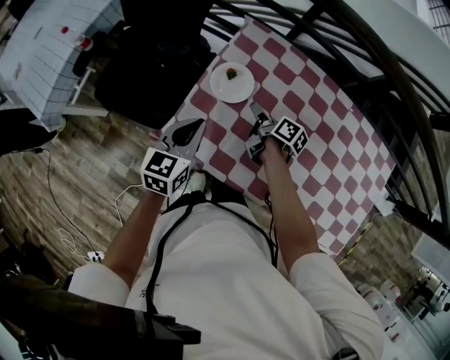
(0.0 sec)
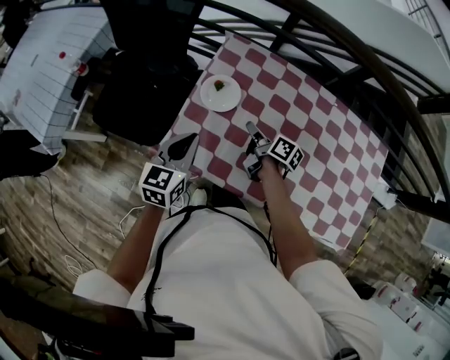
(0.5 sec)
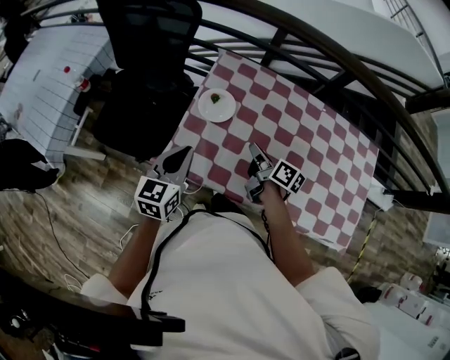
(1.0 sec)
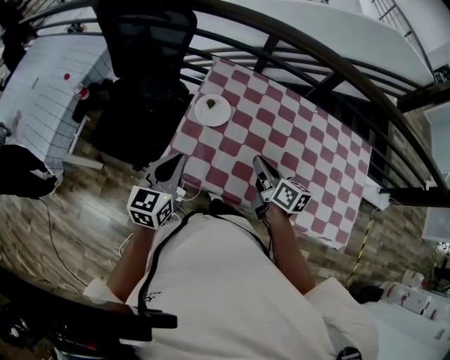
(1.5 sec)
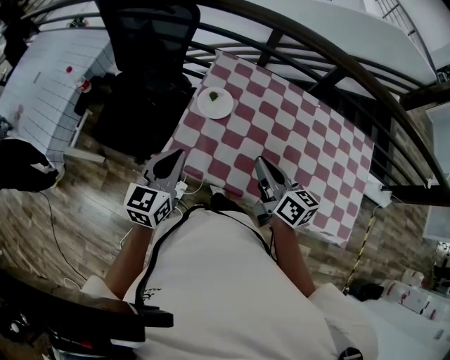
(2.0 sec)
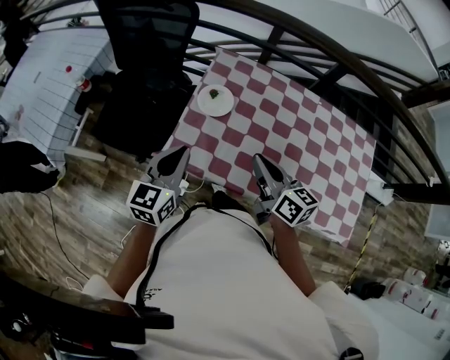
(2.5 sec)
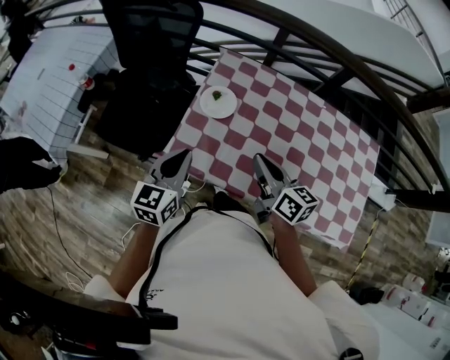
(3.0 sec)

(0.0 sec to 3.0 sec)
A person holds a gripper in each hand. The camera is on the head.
0.0 sec - 1.5 sec: The left gripper ends up approximately 15 cm from where it was.

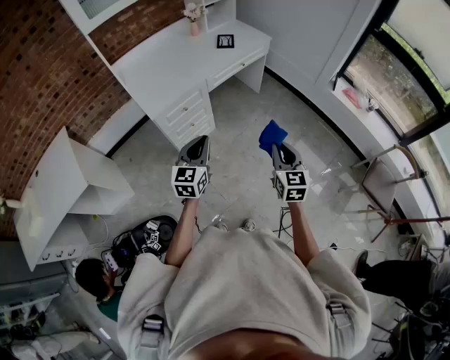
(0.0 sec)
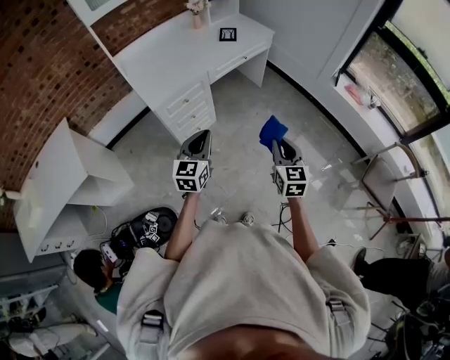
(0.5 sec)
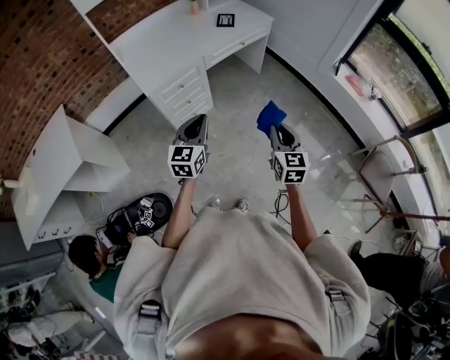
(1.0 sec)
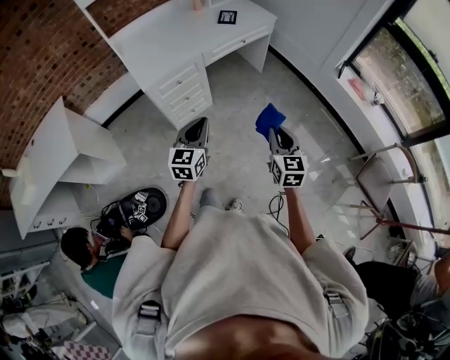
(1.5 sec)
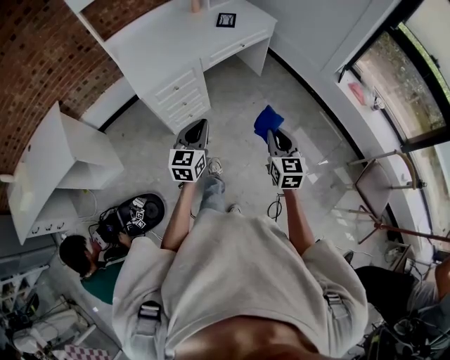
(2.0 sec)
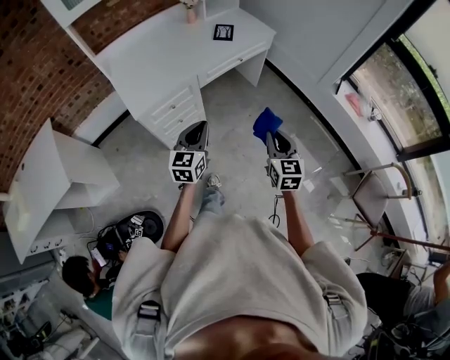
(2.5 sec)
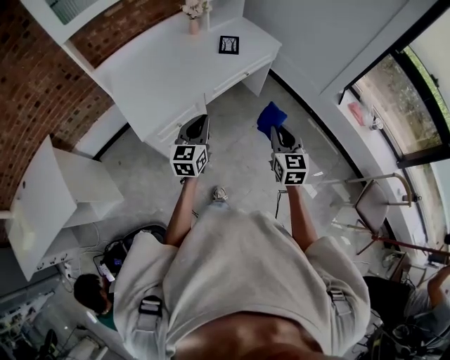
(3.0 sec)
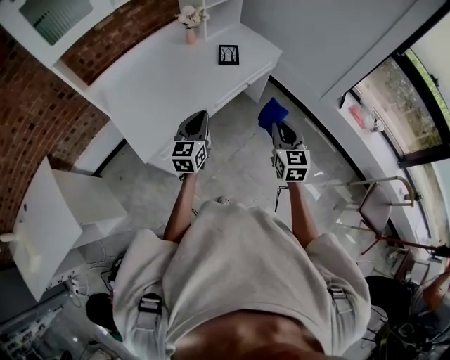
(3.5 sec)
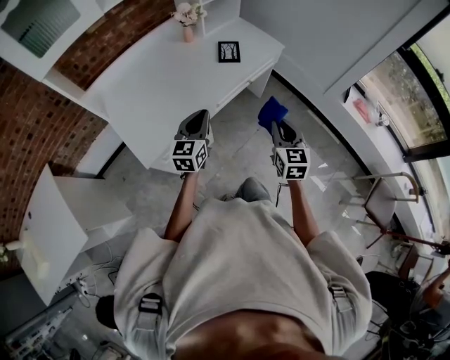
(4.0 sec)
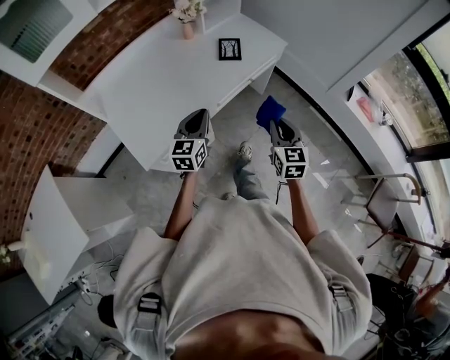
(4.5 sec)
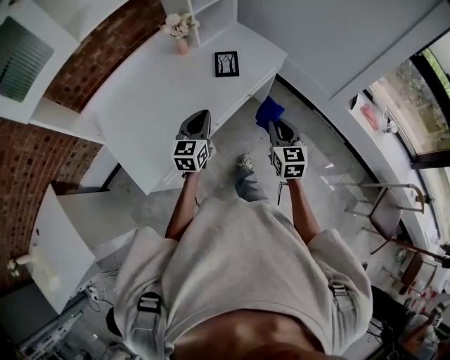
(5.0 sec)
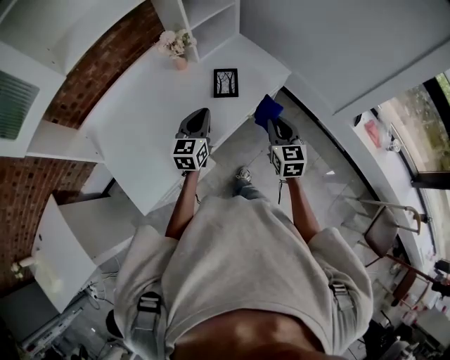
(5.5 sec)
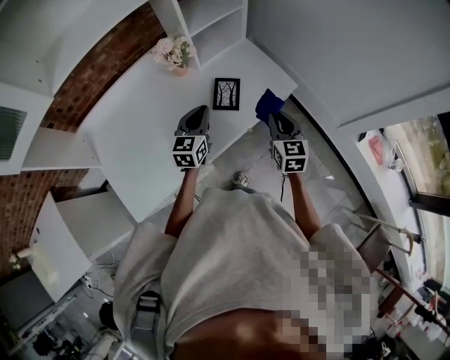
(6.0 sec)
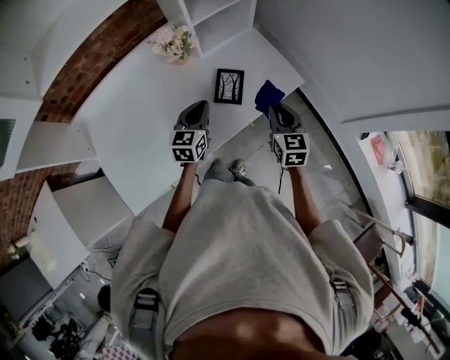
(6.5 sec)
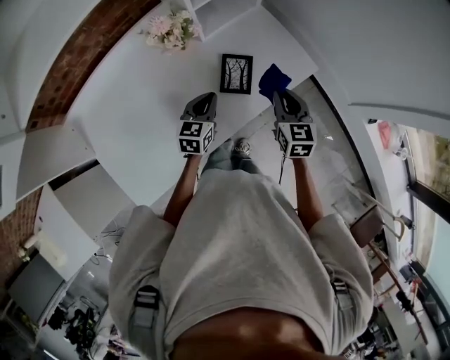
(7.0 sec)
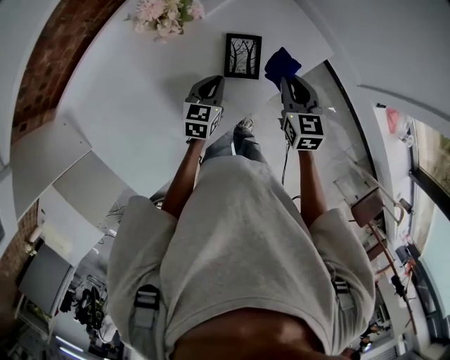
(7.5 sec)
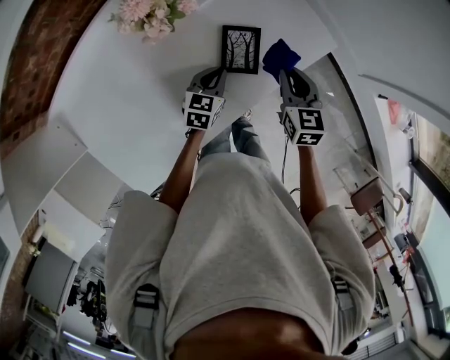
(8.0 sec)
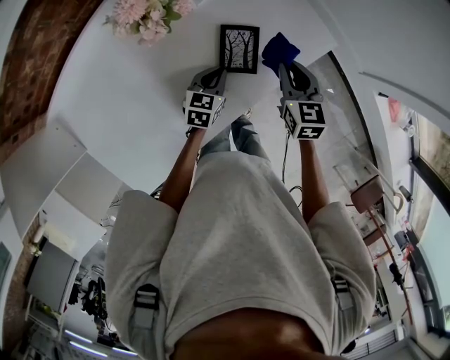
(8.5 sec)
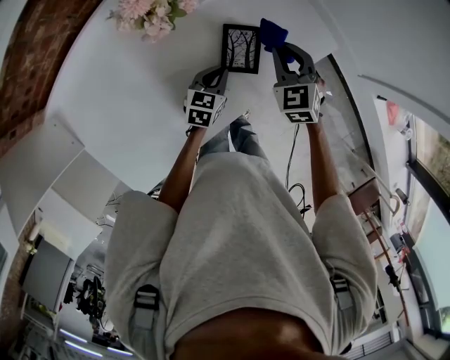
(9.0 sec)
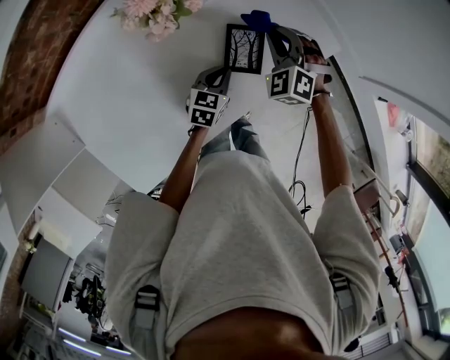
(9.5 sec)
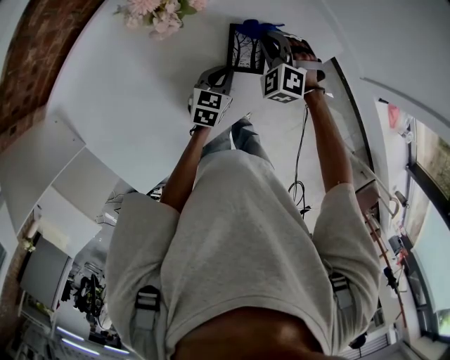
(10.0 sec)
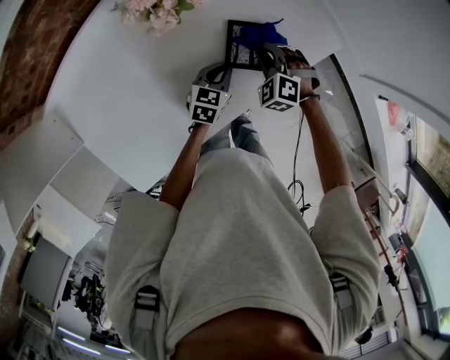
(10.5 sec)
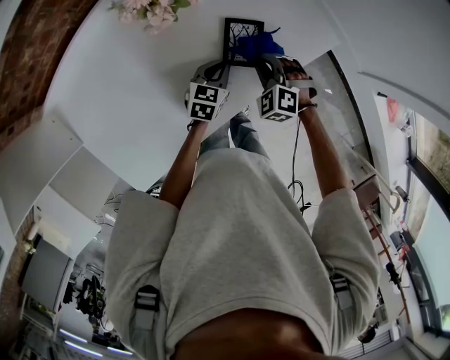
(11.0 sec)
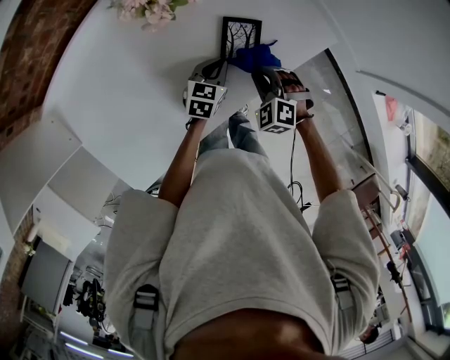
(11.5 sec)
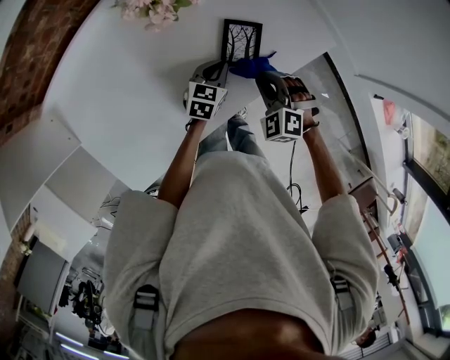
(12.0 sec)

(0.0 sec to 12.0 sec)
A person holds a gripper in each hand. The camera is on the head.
0.0 sec - 2.0 sec: The two grippers go approximately 5 cm to the right.
2.0 sec - 4.0 sec: The two grippers go about 35 cm forward.
4.0 sec - 6.0 sec: The two grippers go about 35 cm forward.
6.0 sec - 8.0 sec: The right gripper is displaced downward, forward and to the left by approximately 15 cm. Meanwhile the left gripper goes roughly 20 cm downward, and changes its angle by about 30 degrees.
8.0 sec - 10.0 sec: The right gripper moves to the left, forward and downward, approximately 15 cm, and twists approximately 60 degrees counterclockwise, seen from behind.
10.0 sec - 12.0 sec: The right gripper is displaced backward by about 15 cm.

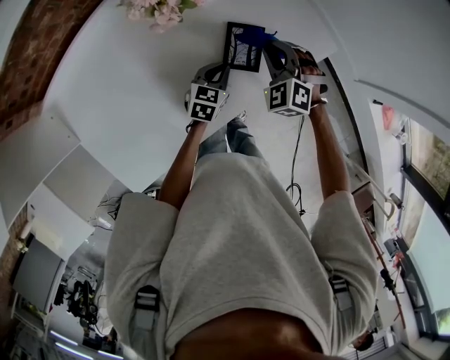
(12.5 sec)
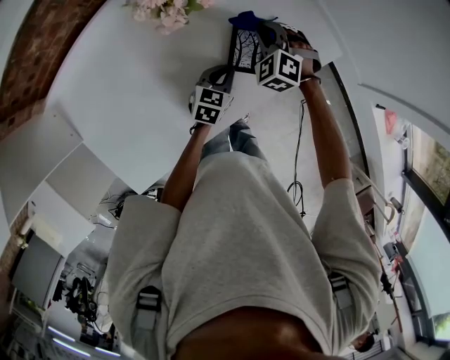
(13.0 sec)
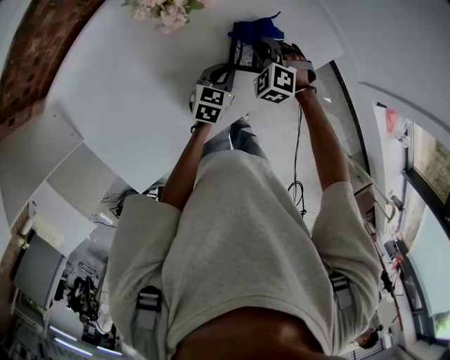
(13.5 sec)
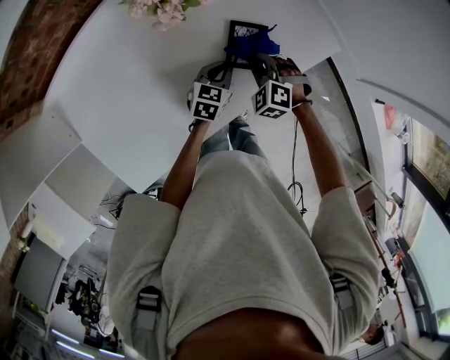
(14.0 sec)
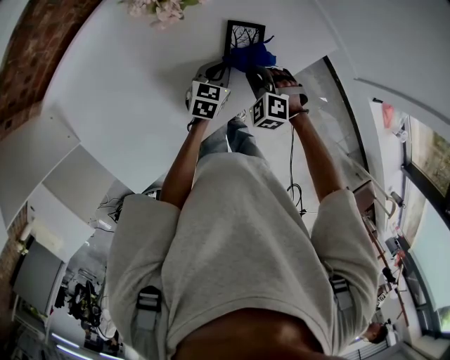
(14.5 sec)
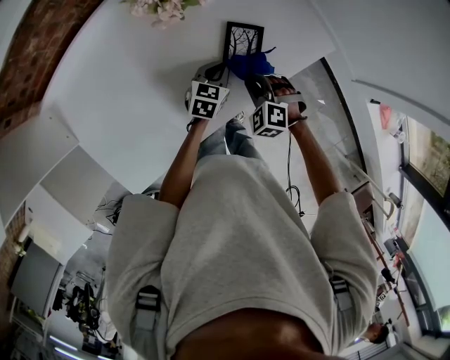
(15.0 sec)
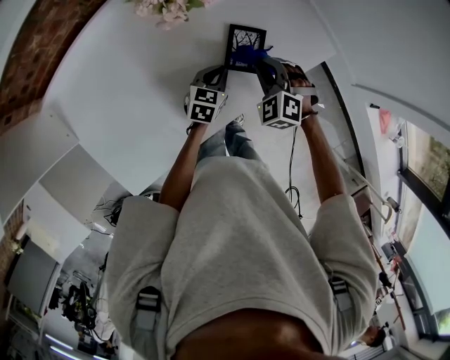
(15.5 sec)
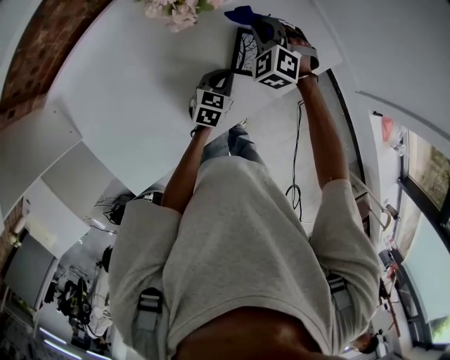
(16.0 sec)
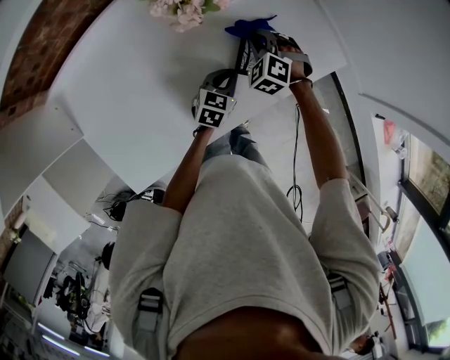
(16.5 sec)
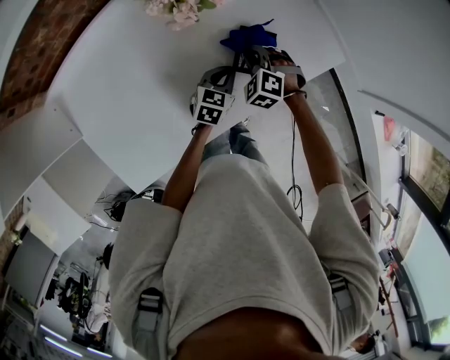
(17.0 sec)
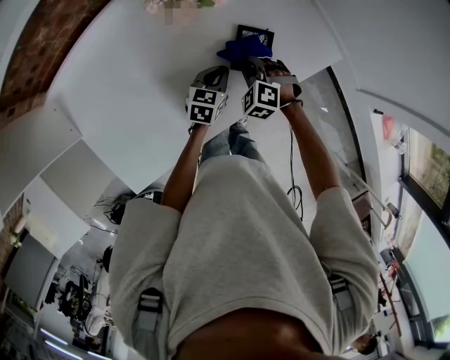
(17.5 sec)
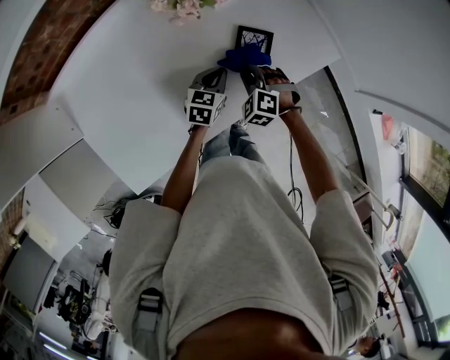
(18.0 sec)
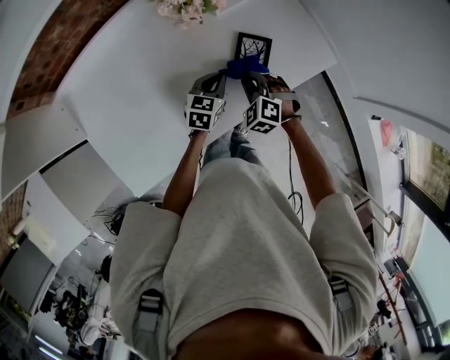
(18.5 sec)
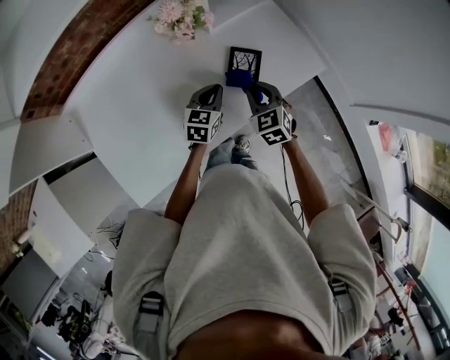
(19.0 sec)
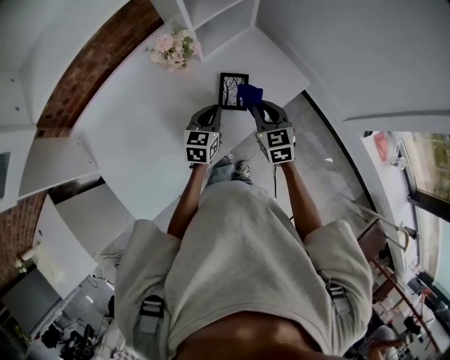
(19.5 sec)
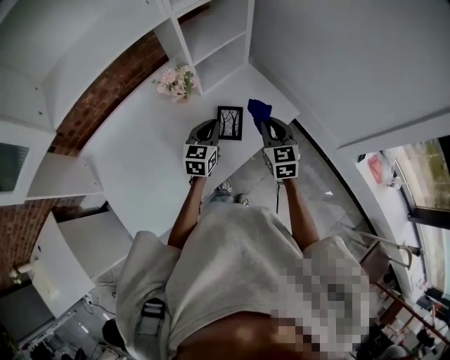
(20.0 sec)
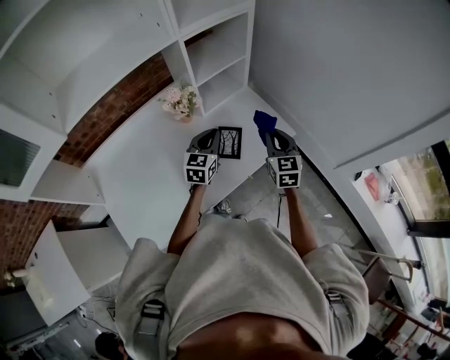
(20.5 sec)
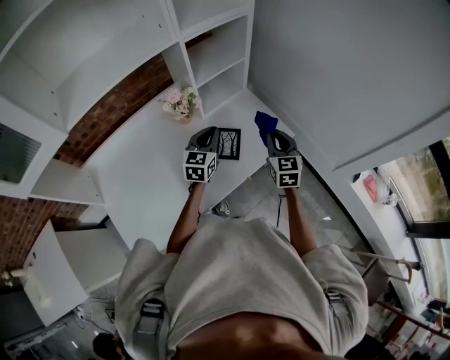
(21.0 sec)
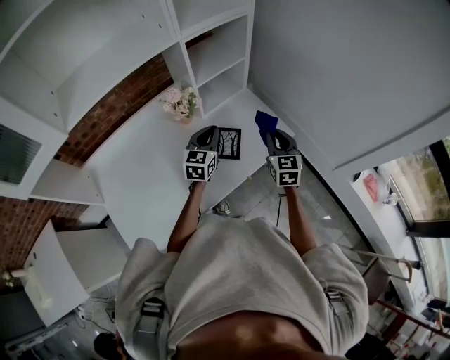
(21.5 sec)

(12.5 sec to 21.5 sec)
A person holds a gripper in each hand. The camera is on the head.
12.5 sec - 14.5 sec: The right gripper travels backward and downward by roughly 10 cm.
14.5 sec - 17.0 sec: The right gripper shifts roughly 5 cm forward.
17.0 sec - 19.5 sec: The left gripper moves upward, some 15 cm. The right gripper moves upward, to the right and backward, some 20 cm, and twists some 50 degrees clockwise, seen from behind.
19.5 sec - 21.5 sec: The left gripper moves upward, roughly 10 cm. Meanwhile the right gripper moves upward and to the right, approximately 15 cm.

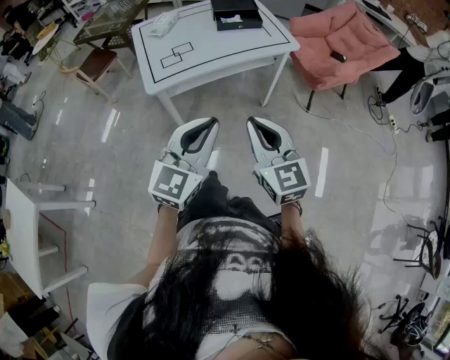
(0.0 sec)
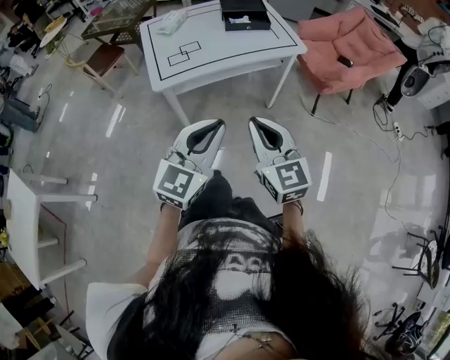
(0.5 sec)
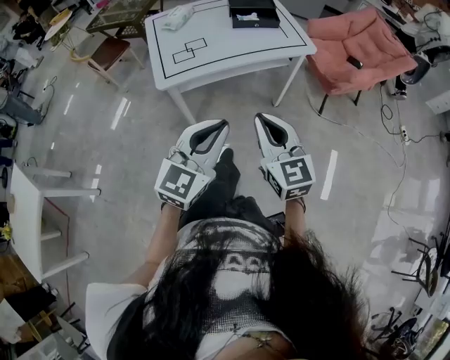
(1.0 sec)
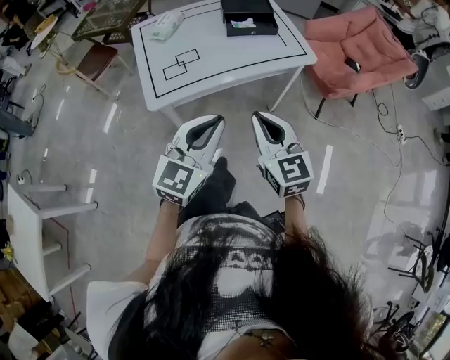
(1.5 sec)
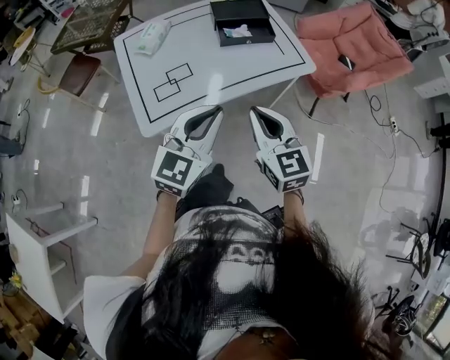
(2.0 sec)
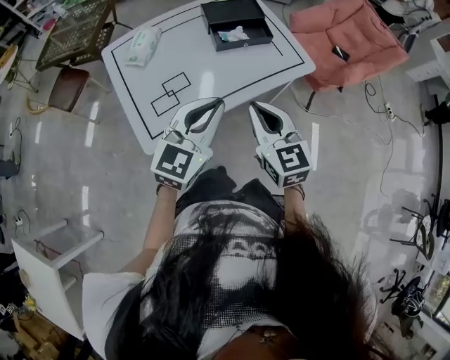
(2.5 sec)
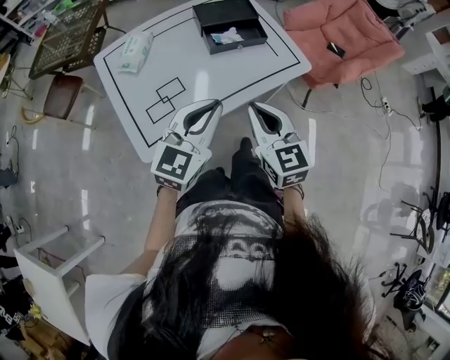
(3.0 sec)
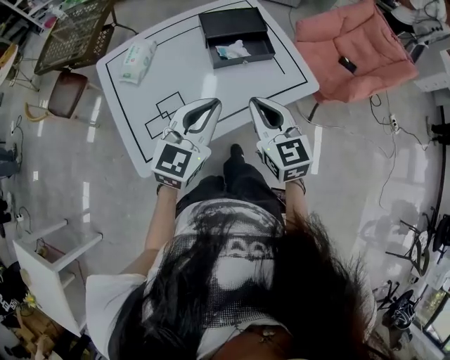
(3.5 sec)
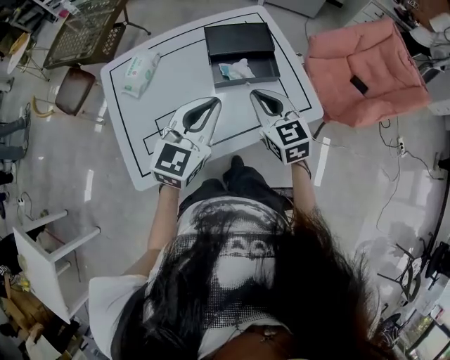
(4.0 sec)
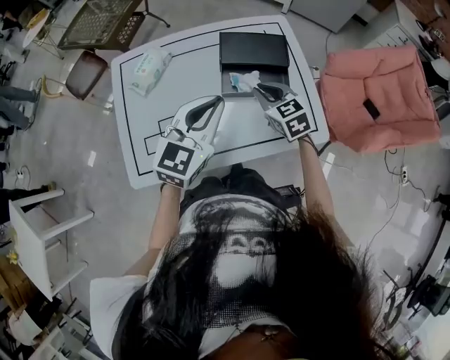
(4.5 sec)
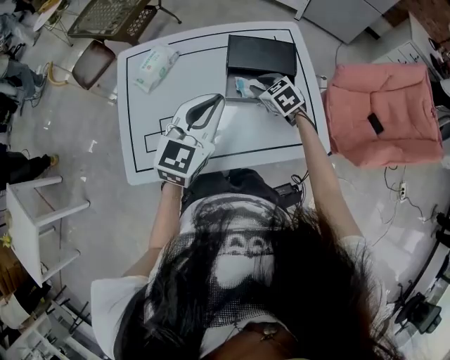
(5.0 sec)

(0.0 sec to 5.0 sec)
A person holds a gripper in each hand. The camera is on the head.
0.0 sec - 2.5 sec: Both grippers move forward, some 35 cm.
2.5 sec - 5.0 sec: The right gripper shifts by roughly 40 cm, tips its fingers downward by about 30 degrees, and opens up. The left gripper changes place by approximately 30 cm, and rotates some 20 degrees.
